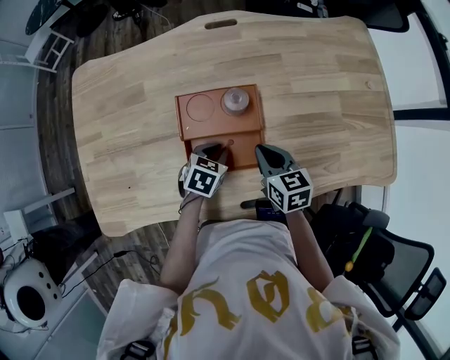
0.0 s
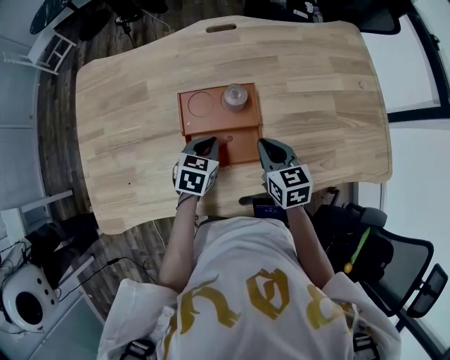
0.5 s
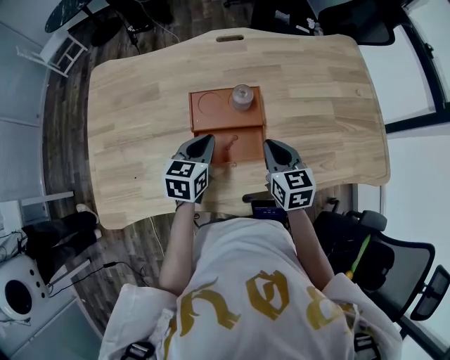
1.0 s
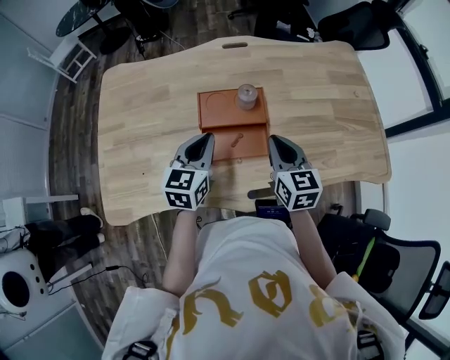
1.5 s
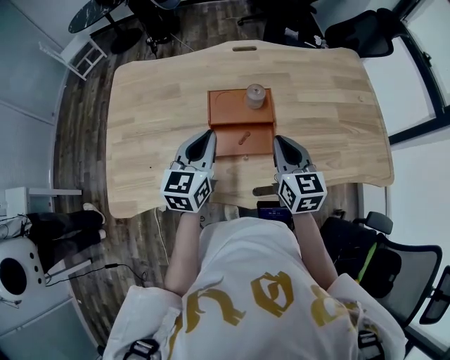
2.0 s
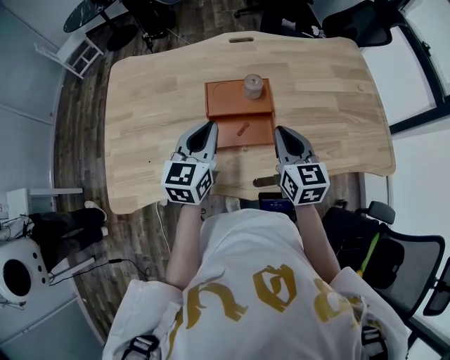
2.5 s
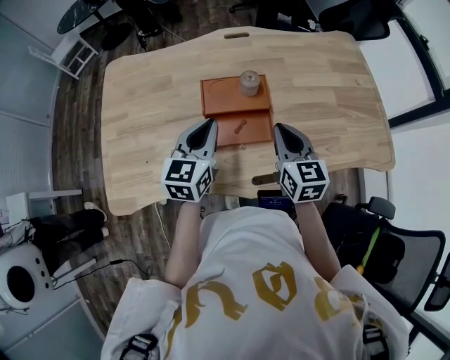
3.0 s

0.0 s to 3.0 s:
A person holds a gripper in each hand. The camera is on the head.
0.0 to 1.5 s: The left gripper moves upward, approximately 20 cm, and angles its fingers upward, by roughly 40 degrees; the right gripper shifts roughly 15 cm upward and backward, and swivels about 20 degrees.
1.5 to 3.0 s: The grippers move only a little.

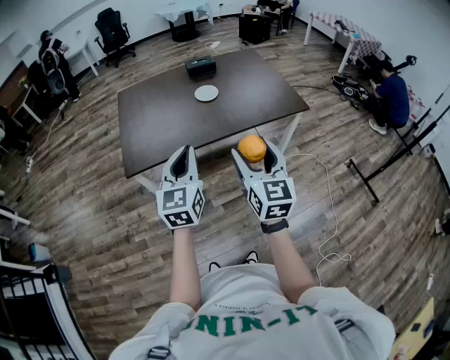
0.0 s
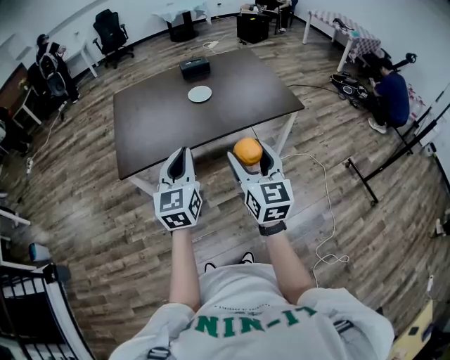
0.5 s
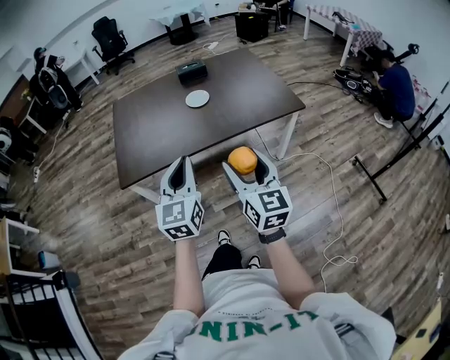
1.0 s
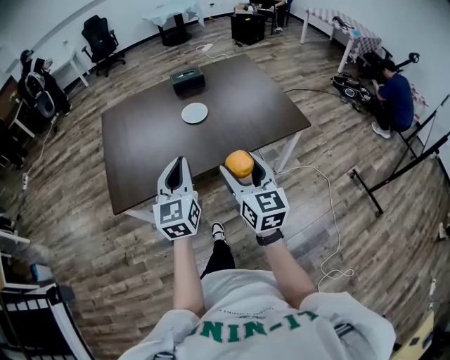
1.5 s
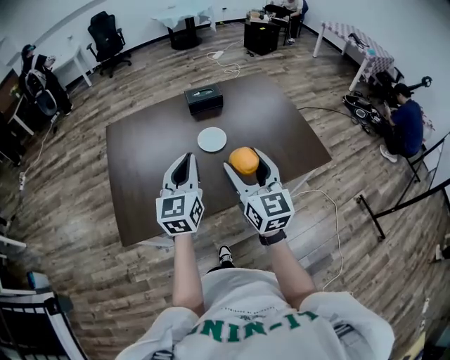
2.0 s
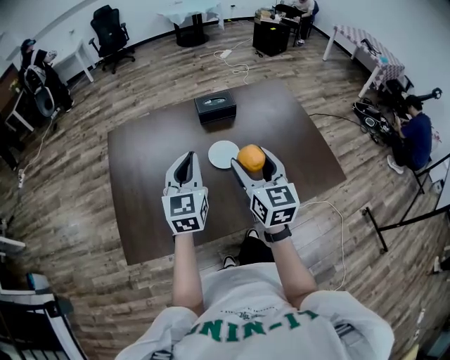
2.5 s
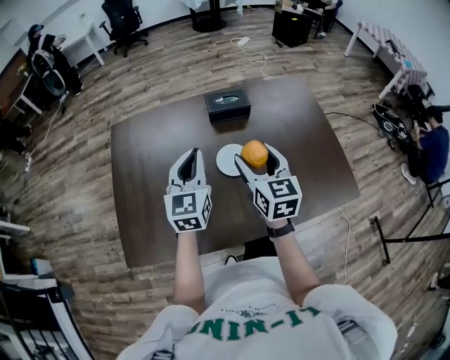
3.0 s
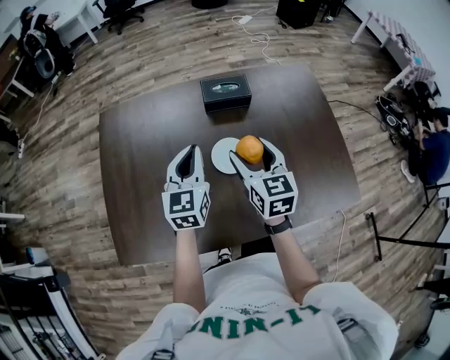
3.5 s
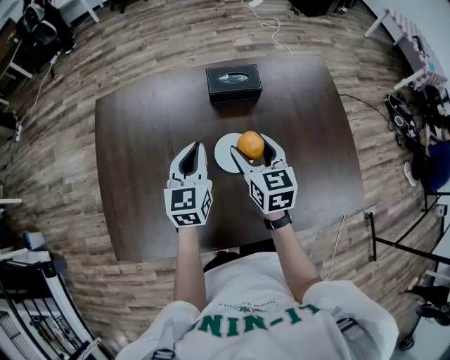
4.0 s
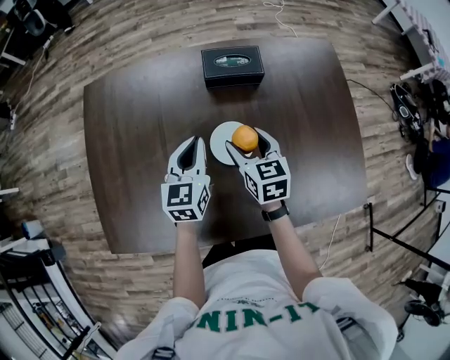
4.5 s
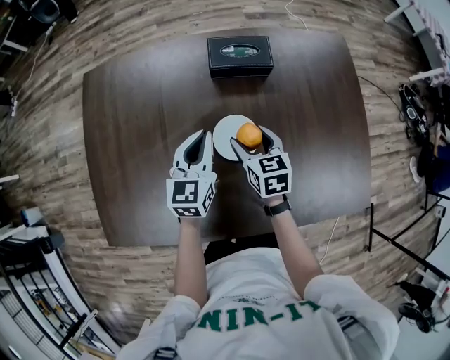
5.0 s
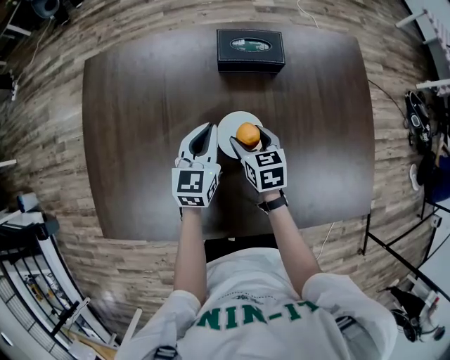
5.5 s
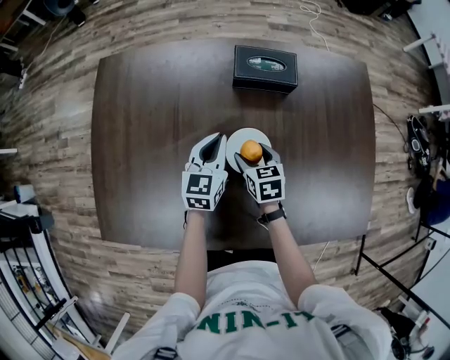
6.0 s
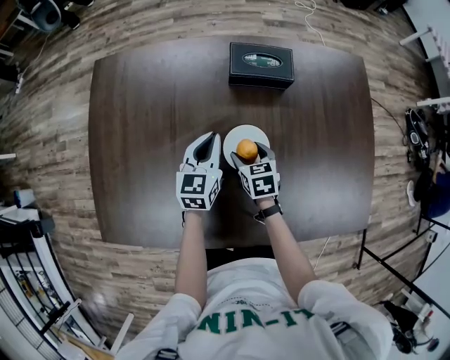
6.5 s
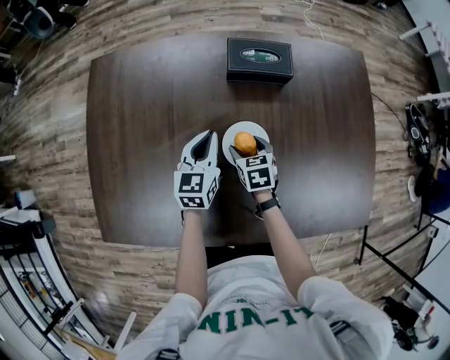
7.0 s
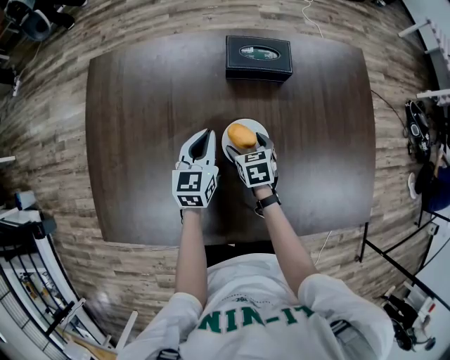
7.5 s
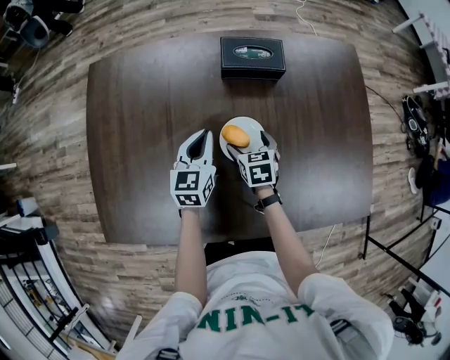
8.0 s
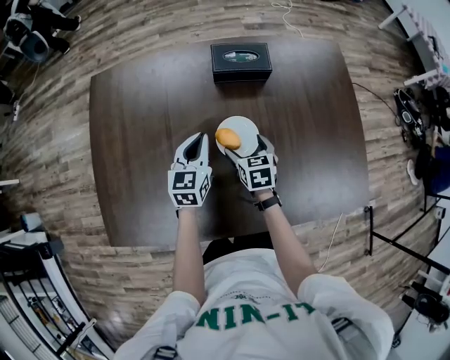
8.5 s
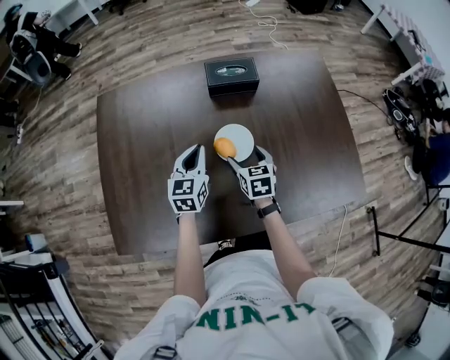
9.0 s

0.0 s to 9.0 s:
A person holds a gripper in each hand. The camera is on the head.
0.0 to 2.0 s: Both grippers travel together forward, approximately 40 cm.
2.0 to 4.5 s: The grippers both shift forward and downward by about 50 cm. The left gripper turns by approximately 20 degrees. Meanwhile the right gripper angles its fingers downward, by about 30 degrees.
4.5 to 7.0 s: The right gripper moves downward, some 15 cm. The left gripper shifts roughly 10 cm downward.
7.0 to 9.0 s: The right gripper goes some 10 cm upward and backward. Meanwhile the left gripper is displaced backward and upward by approximately 10 cm.

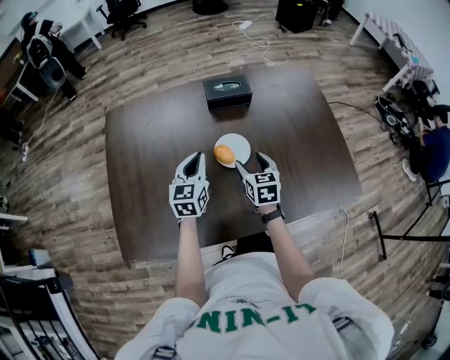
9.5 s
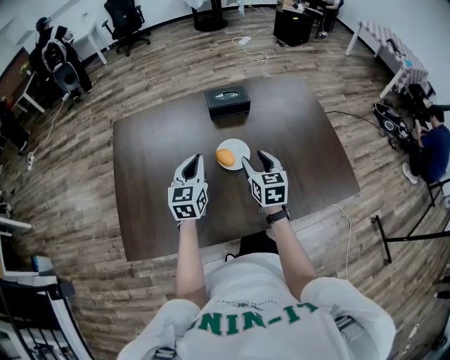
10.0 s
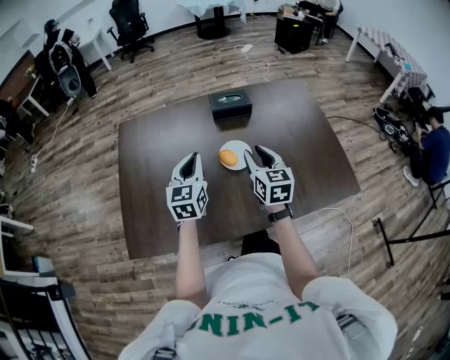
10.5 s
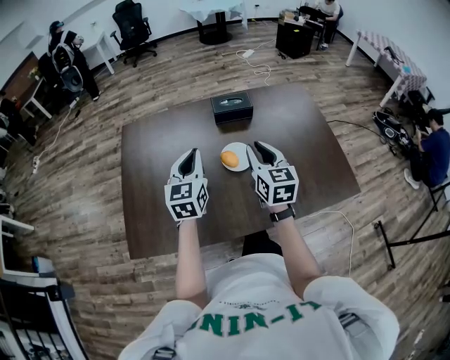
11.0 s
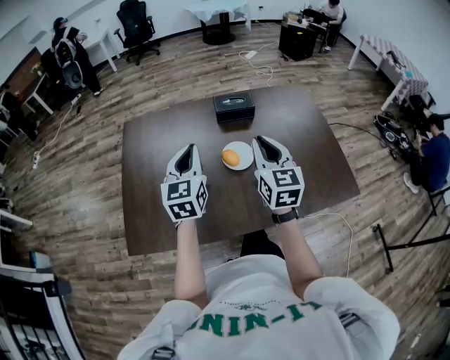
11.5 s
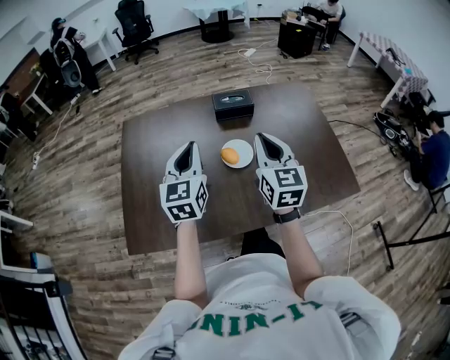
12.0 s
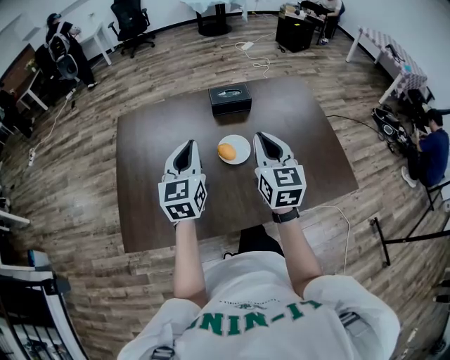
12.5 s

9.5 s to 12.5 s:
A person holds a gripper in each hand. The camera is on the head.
9.5 to 11.0 s: The right gripper travels upward by some 20 cm, turns by about 20 degrees, and closes its fingers. The left gripper travels upward and backward by some 15 cm.

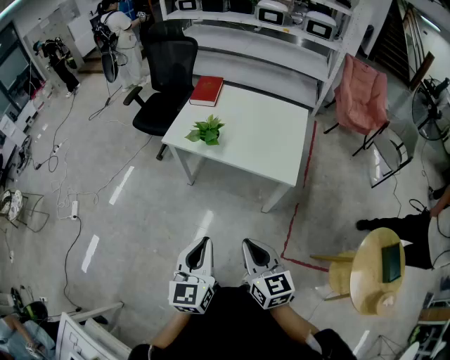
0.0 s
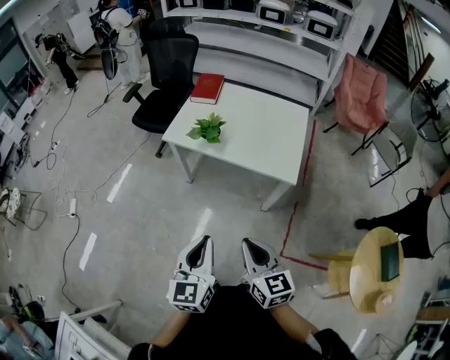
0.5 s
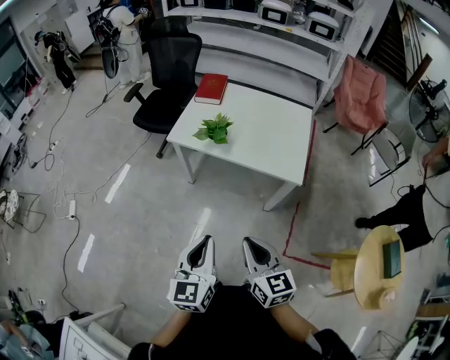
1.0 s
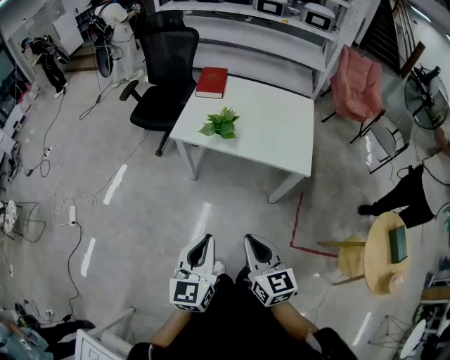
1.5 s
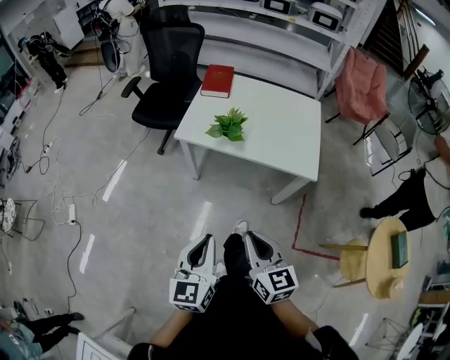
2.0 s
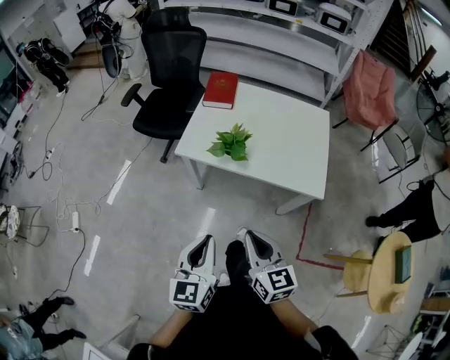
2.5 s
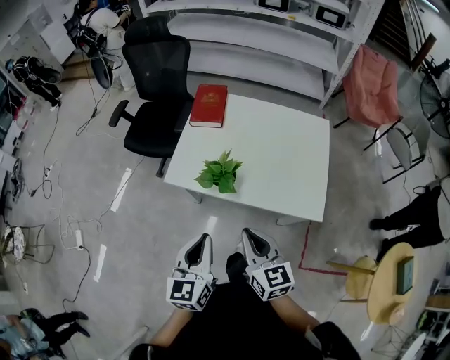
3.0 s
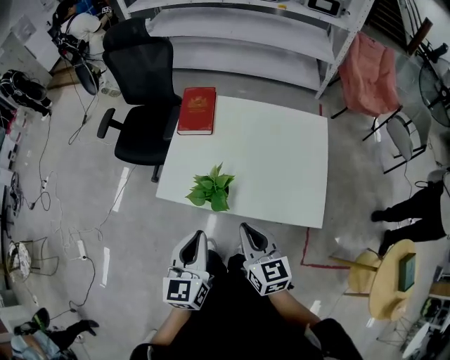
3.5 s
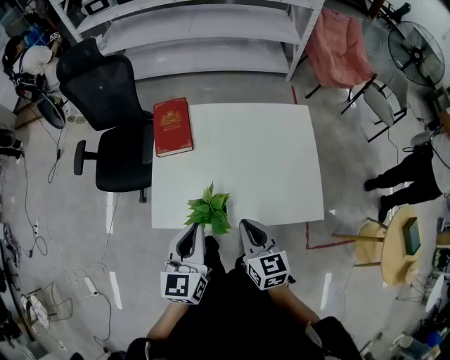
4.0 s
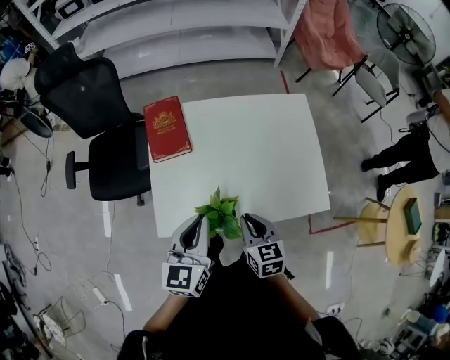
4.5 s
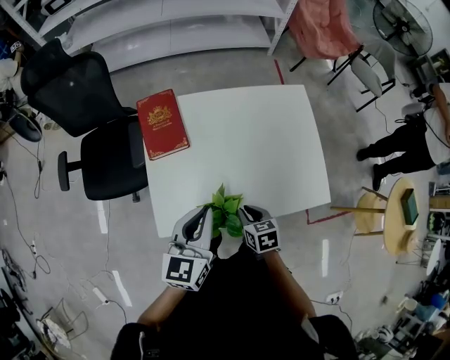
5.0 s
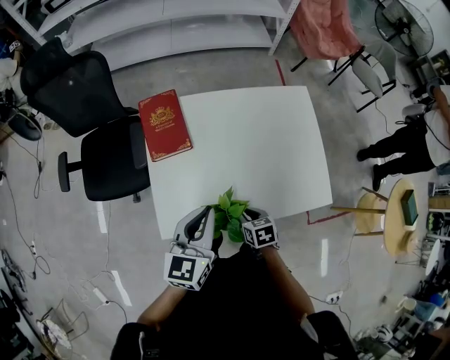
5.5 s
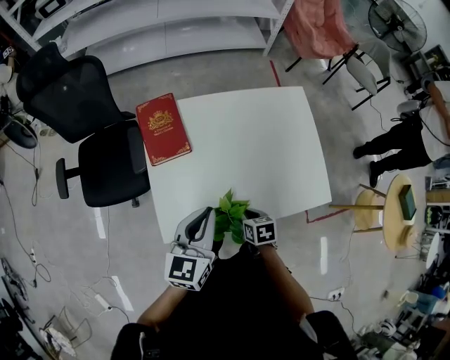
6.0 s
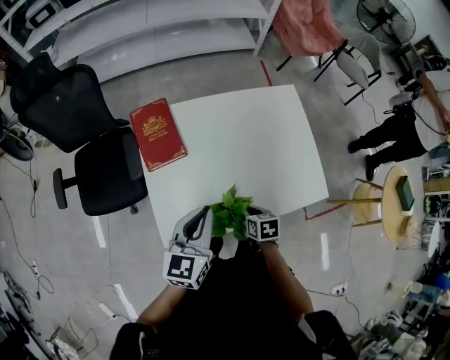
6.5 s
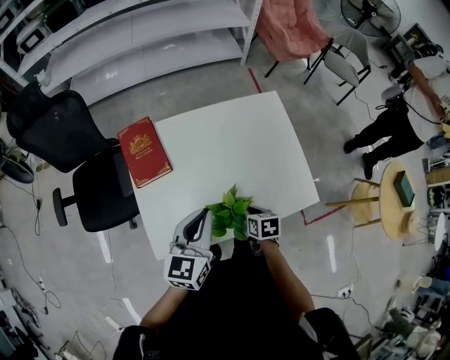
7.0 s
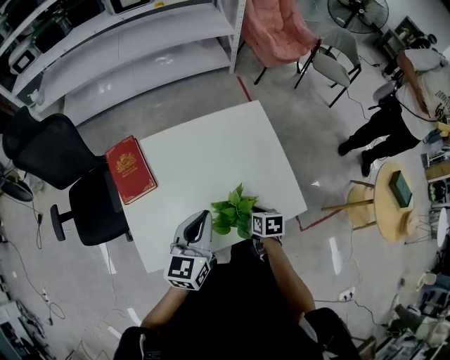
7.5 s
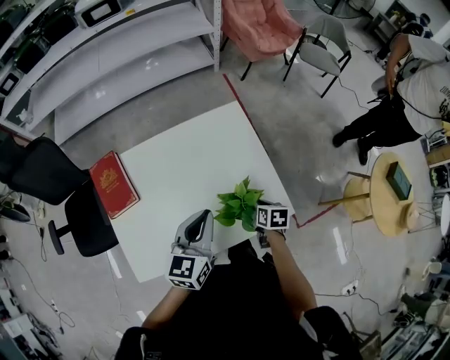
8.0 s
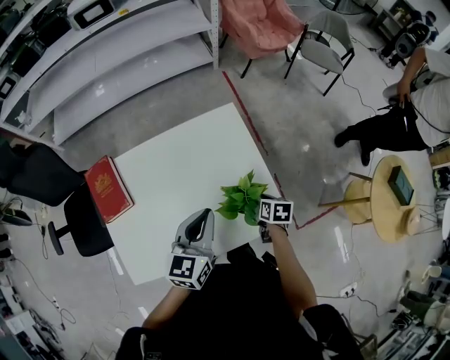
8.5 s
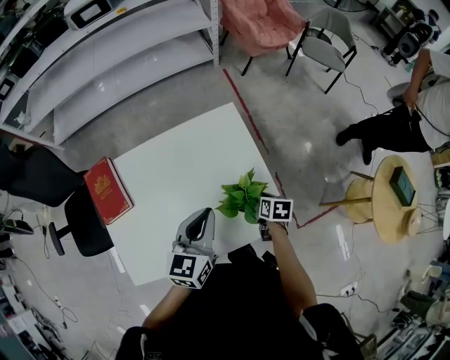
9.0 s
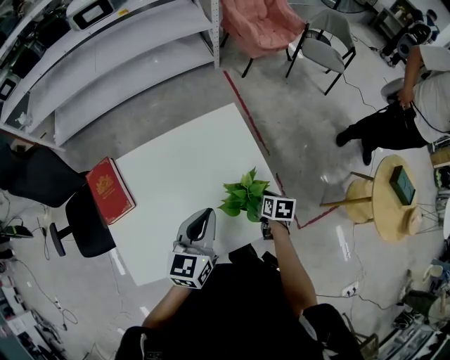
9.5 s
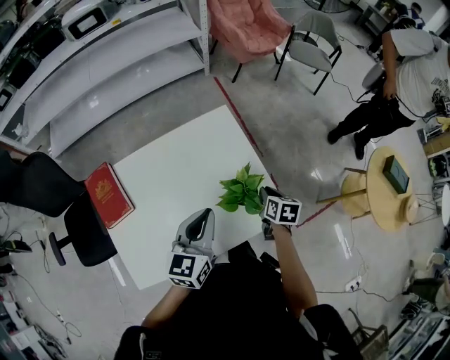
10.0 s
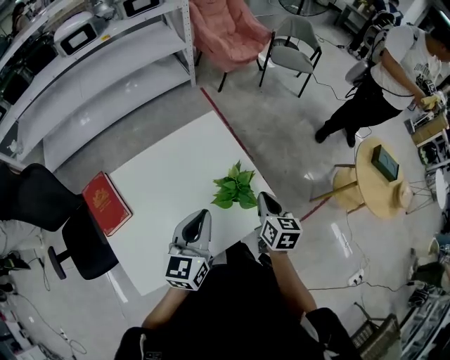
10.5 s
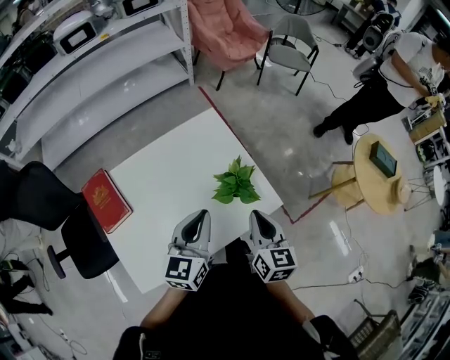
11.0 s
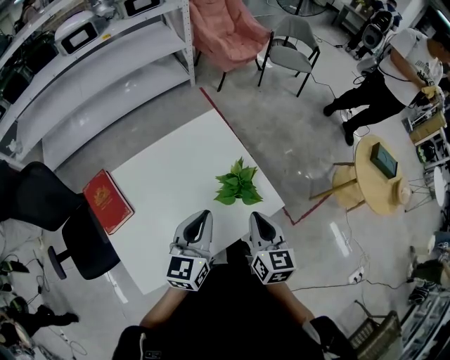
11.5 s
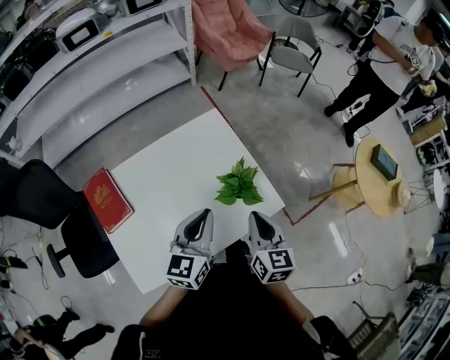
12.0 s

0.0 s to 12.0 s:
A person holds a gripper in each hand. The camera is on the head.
0.0 to 2.0 s: The grippers both shift to the left and forward by approximately 15 cm.
2.0 to 4.0 s: The pair of grippers is taken forward, about 50 cm.
4.0 to 6.0 s: The right gripper travels downward by approximately 20 cm, and angles its fingers downward, by approximately 30 degrees, while the left gripper goes about 10 cm forward, and turns by approximately 20 degrees.
6.0 to 8.0 s: The two grippers go some 25 cm to the right. The right gripper swivels approximately 20 degrees.
8.0 to 10.0 s: The right gripper shifts some 5 cm to the right.
10.0 to 12.0 s: The right gripper moves upward and backward, some 20 cm, and rotates about 30 degrees.
